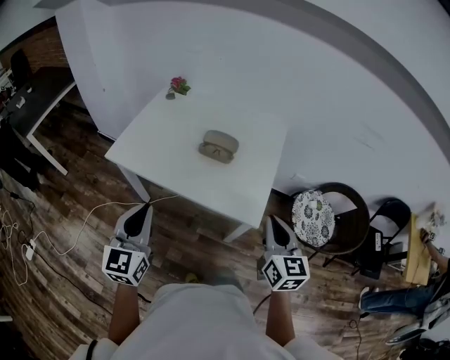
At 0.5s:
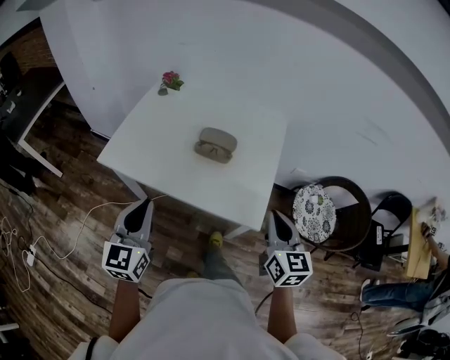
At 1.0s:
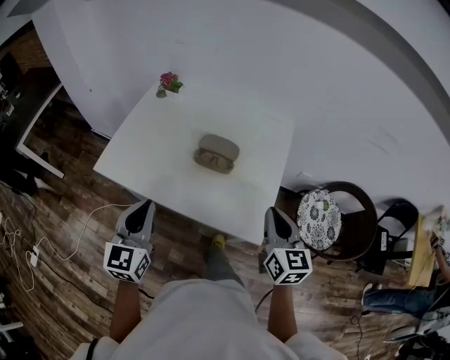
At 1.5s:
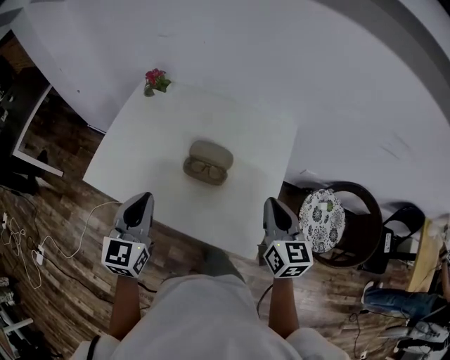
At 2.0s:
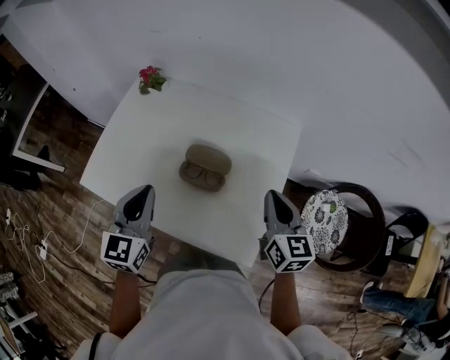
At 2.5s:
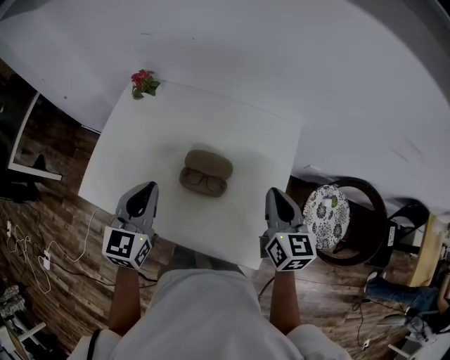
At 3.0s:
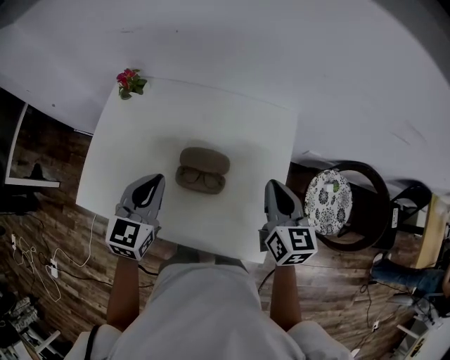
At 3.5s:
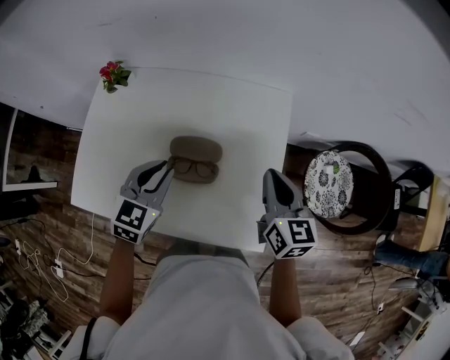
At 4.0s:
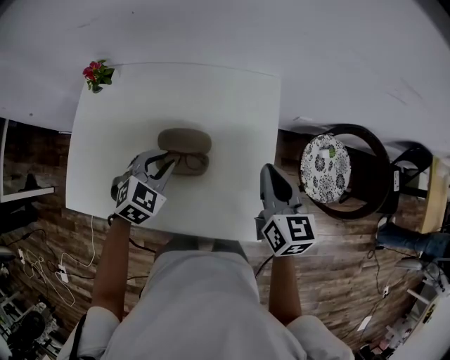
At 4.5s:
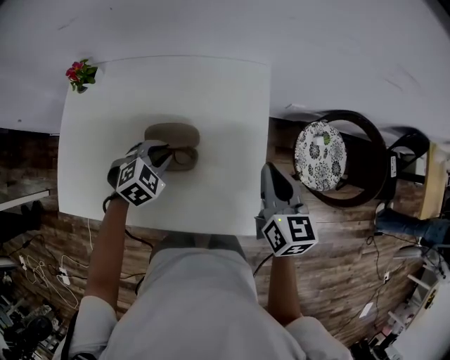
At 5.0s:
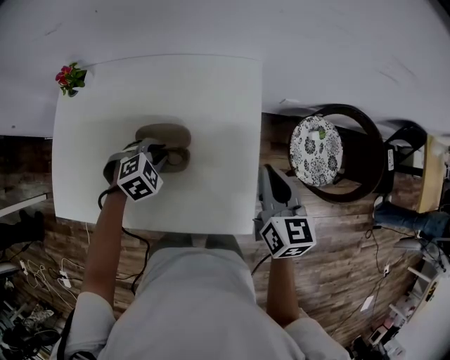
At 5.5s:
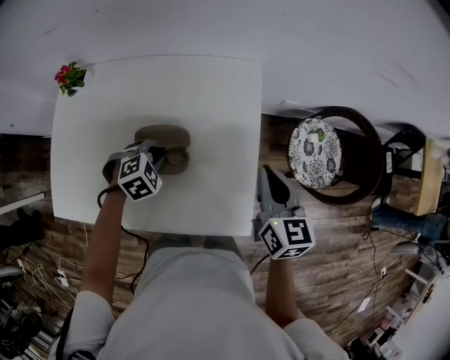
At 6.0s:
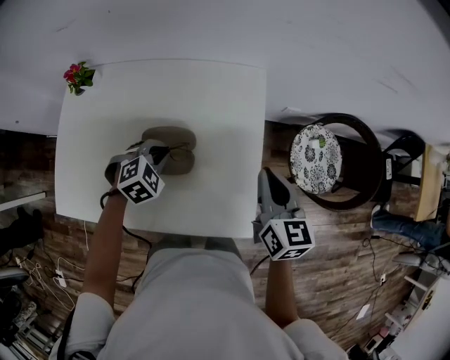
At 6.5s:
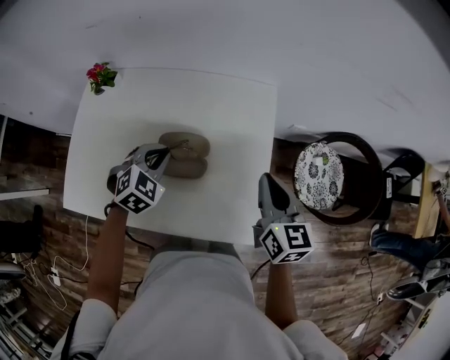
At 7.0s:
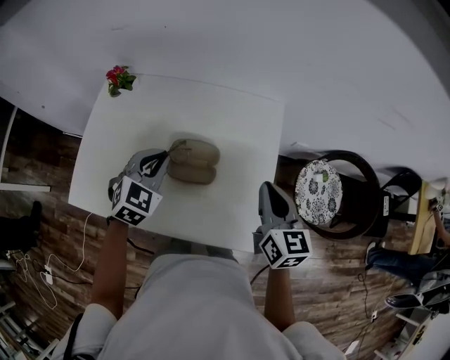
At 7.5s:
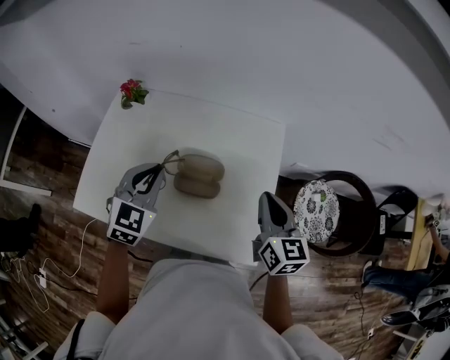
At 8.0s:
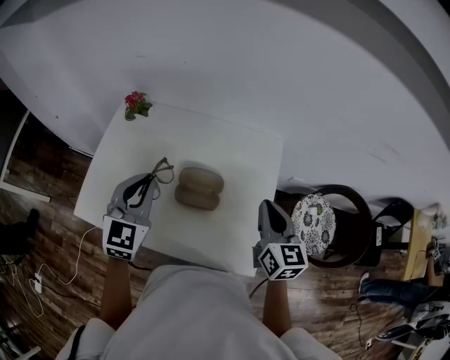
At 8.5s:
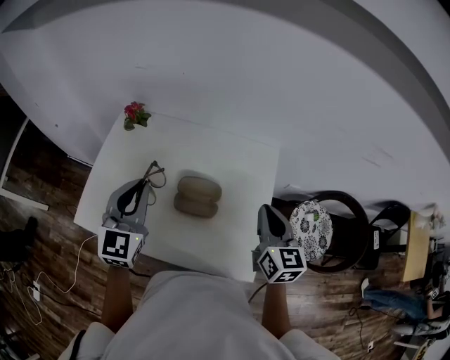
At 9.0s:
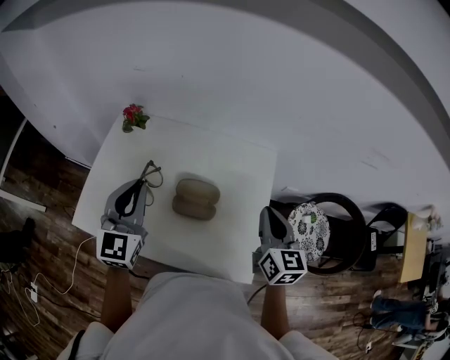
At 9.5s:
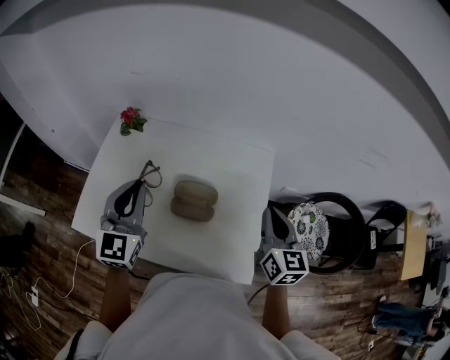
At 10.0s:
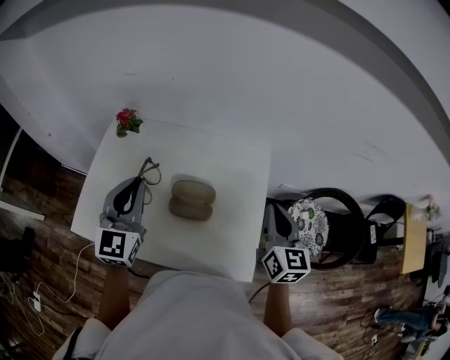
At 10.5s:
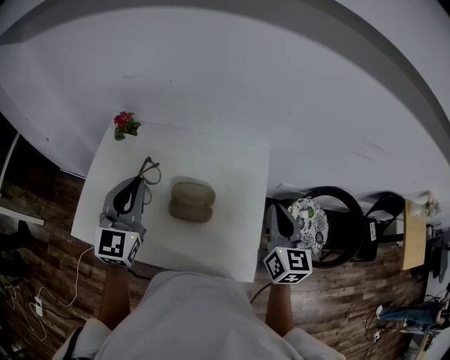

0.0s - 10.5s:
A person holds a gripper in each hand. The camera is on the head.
0.0s - 2.0s: The two grippers go about 30 cm forward.
2.0s - 4.0s: The left gripper moves downward, forward and to the right, about 20 cm, and tilts its fingers some 30 degrees downward.
4.0s - 6.5s: The left gripper goes downward and returns, some 10 cm each way.
6.5s - 8.5s: The right gripper moves upward, approximately 5 cm, while the left gripper heads upward and to the left, covering some 25 cm, and angles its fingers upward, by about 40 degrees.
8.5s - 10.5s: The grippers stay close to where they were, moving slightly.

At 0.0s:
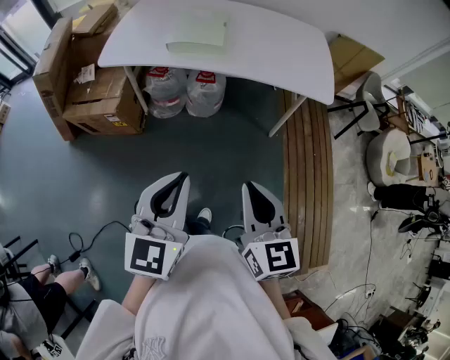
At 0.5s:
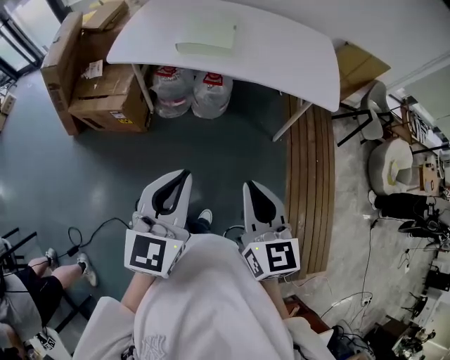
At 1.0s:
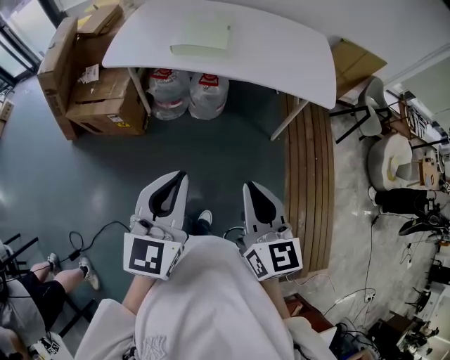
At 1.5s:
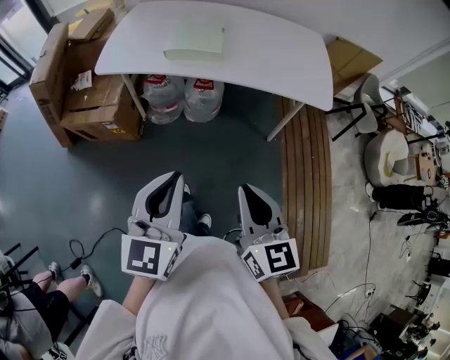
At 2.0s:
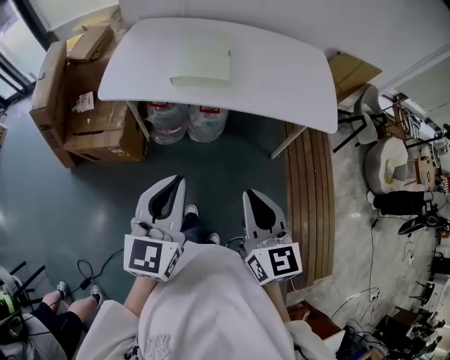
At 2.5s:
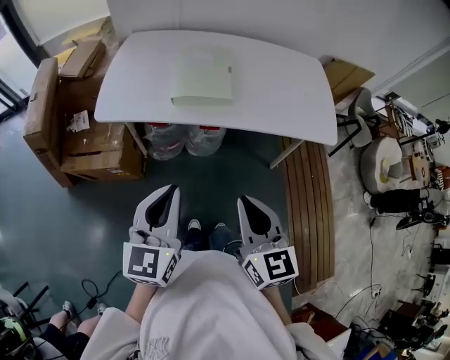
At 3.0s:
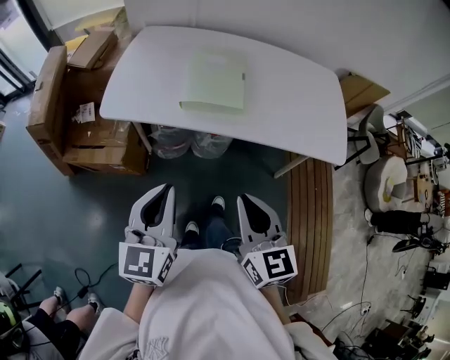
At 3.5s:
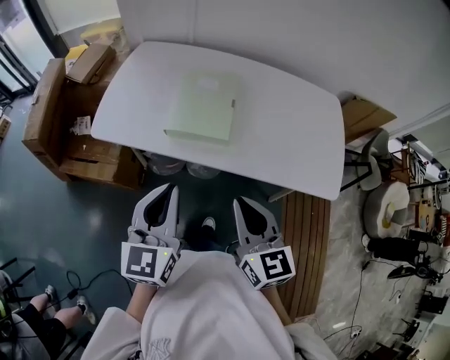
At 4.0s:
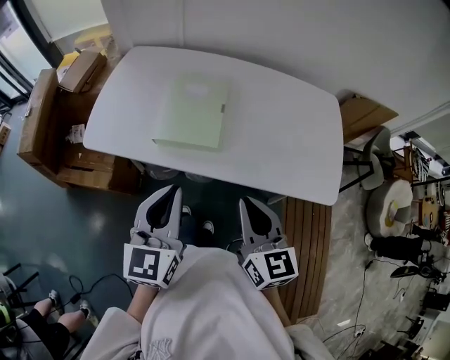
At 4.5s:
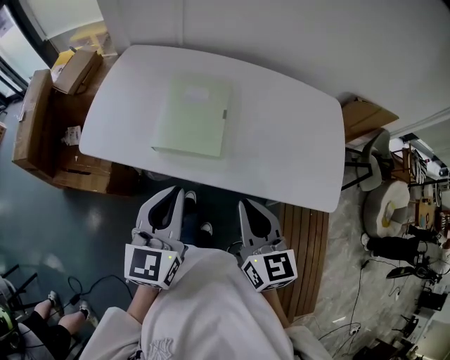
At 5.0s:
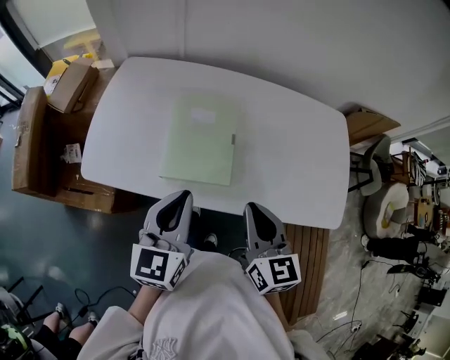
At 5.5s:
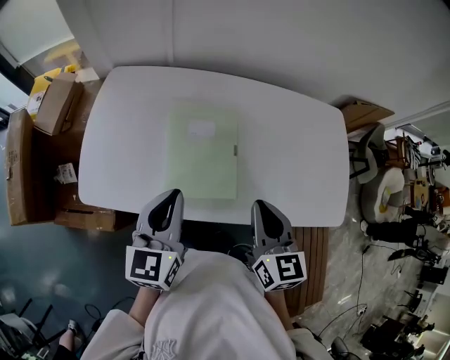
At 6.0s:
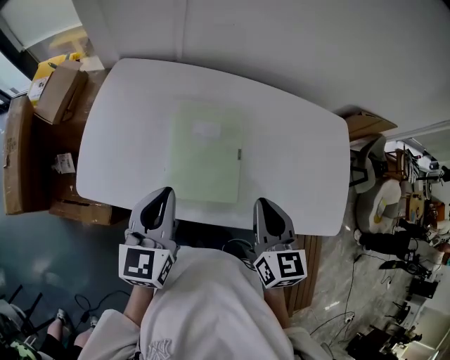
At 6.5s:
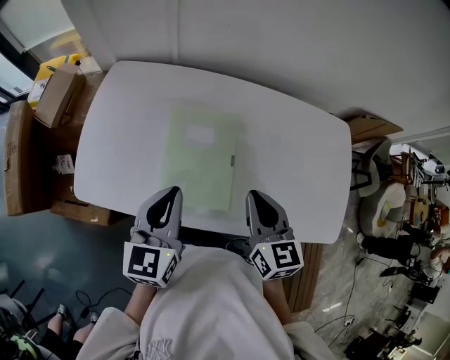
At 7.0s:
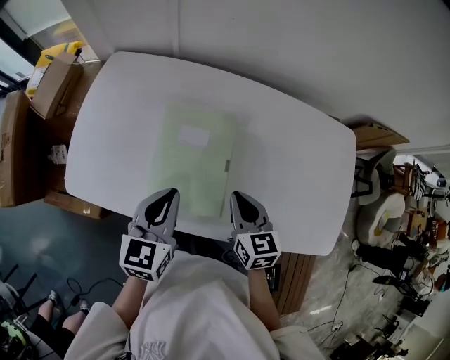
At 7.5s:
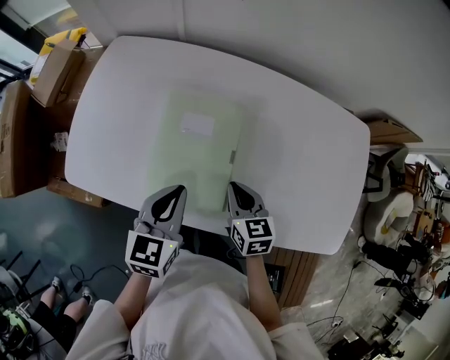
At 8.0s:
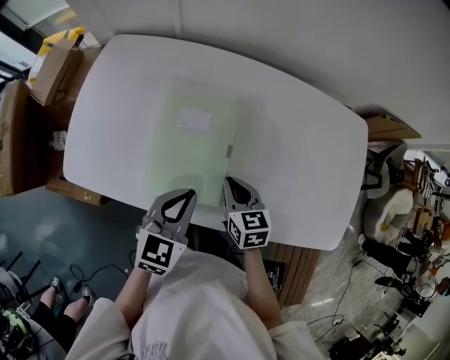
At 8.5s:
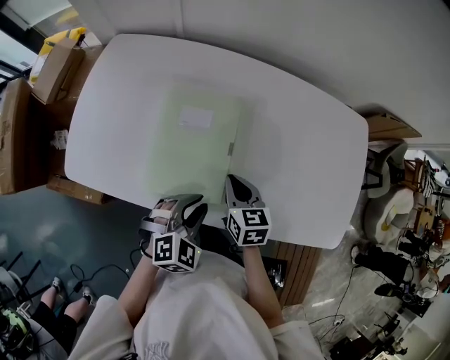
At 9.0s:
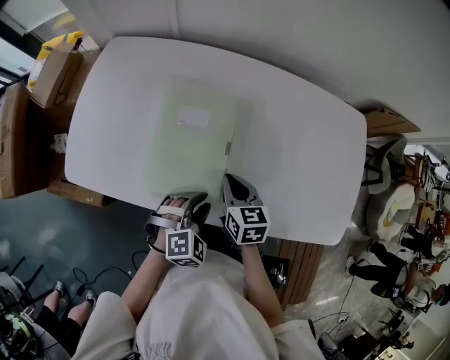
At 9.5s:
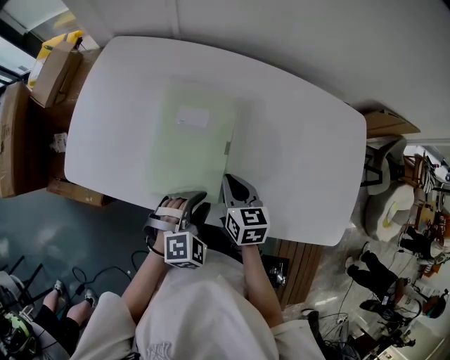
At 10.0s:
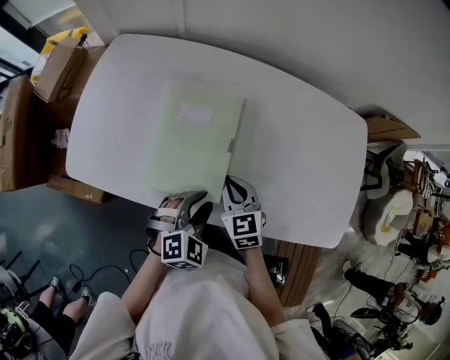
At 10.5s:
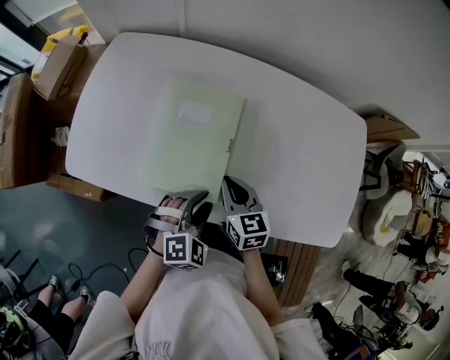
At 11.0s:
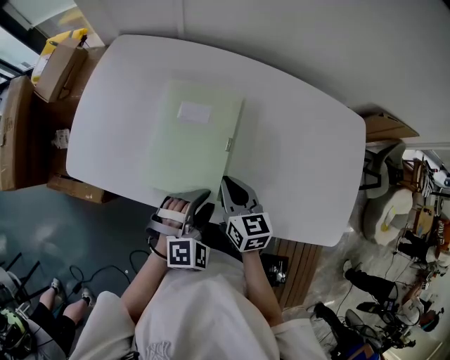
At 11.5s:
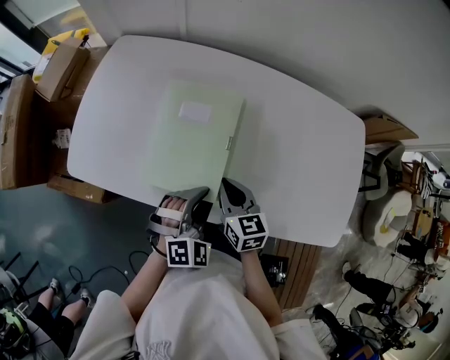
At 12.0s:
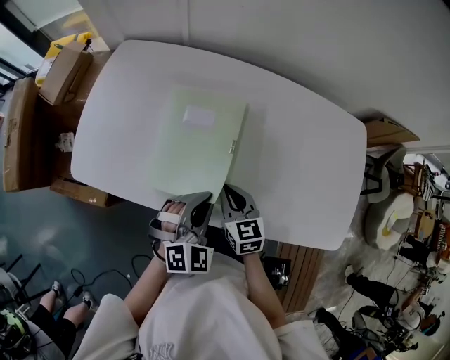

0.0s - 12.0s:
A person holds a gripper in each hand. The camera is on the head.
0.0s - 2.0s: Both grippers travel together forward and to the left, about 15 cm.
2.0s - 4.0s: The grippers both shift forward by some 25 cm.
4.0s - 6.0s: The right gripper goes roughly 20 cm forward. The left gripper shifts roughly 25 cm forward and to the left.
6.0s - 8.0s: The left gripper goes approximately 15 cm to the right and downward, and turns by some 20 degrees, while the right gripper heads downward, covering about 20 cm, and swivels roughly 20 degrees.
8.0s - 10.0s: The left gripper travels downward by about 5 cm, rotates approximately 30 degrees, and opens its fingers.
10.0s - 12.0s: The left gripper travels upward by about 5 cm, and closes.

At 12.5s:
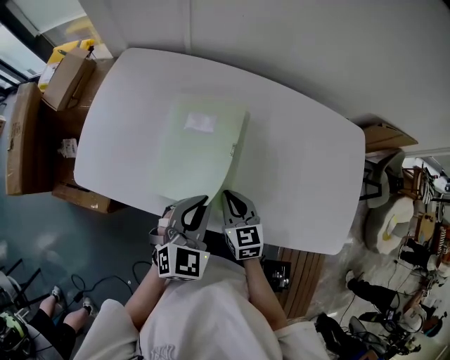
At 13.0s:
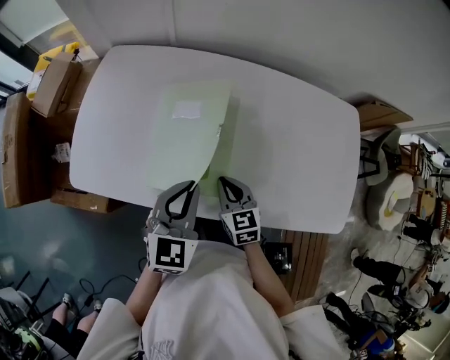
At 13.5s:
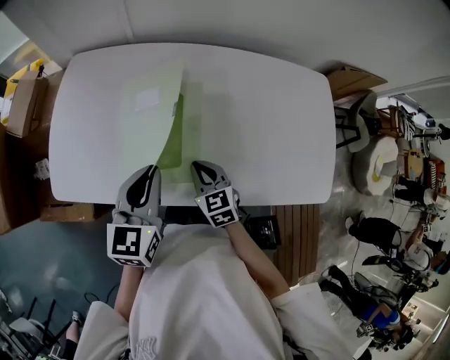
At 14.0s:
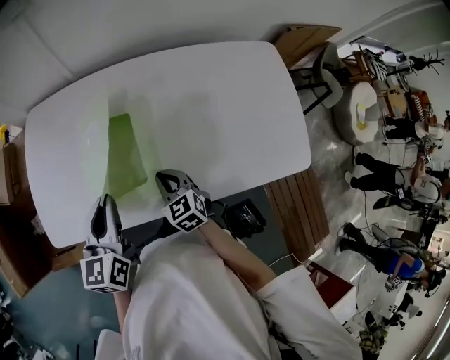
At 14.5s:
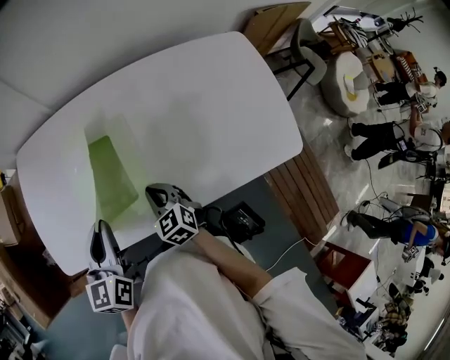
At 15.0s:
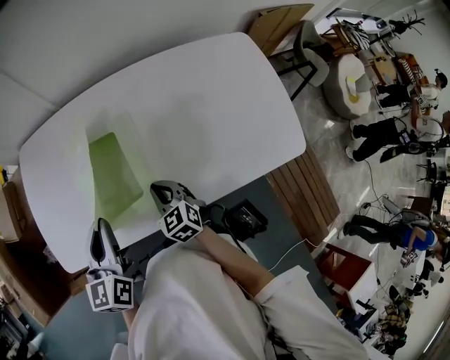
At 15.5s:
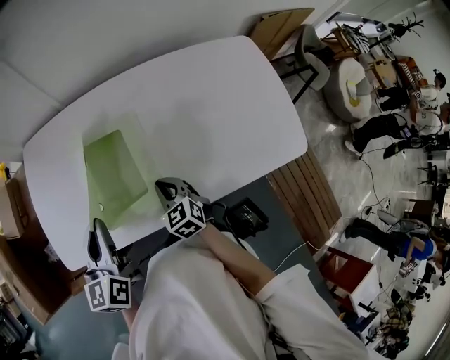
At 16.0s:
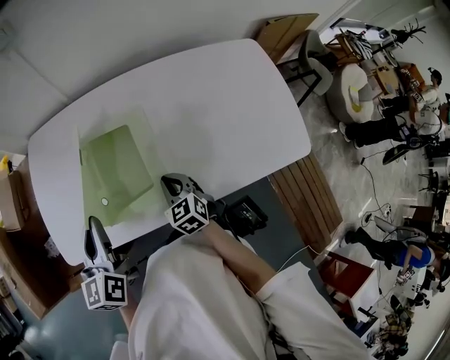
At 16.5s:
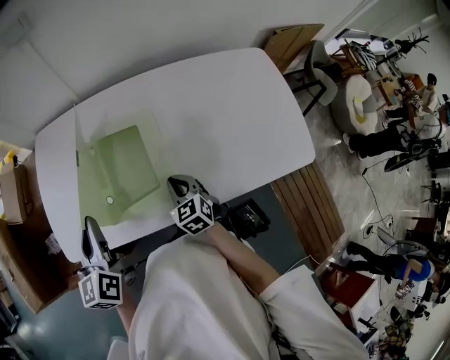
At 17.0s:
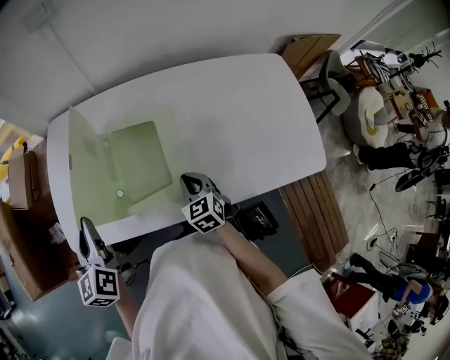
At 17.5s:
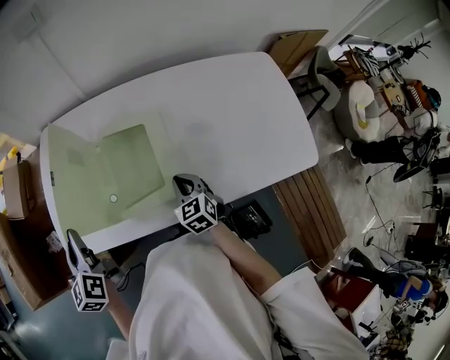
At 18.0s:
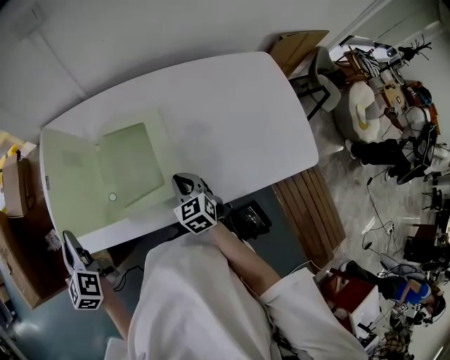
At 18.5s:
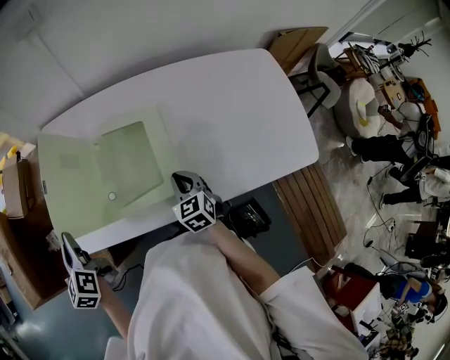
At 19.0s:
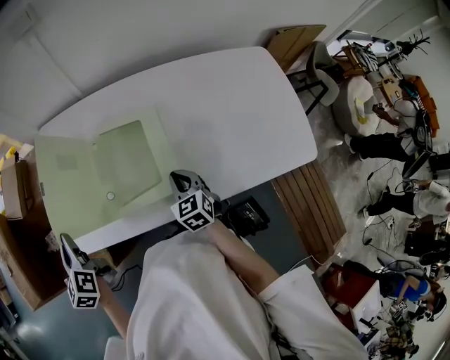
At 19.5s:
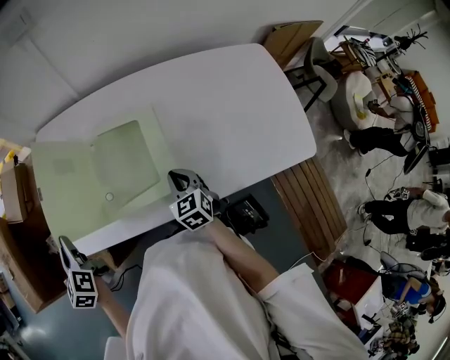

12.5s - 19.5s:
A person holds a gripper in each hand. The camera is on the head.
12.5s - 14.5s: The left gripper travels to the left and upward by some 10 cm, and swivels roughly 30 degrees.
14.5s - 16.0s: The left gripper heads to the left, covering approximately 5 cm.
16.0s - 17.5s: The left gripper heads to the left, covering about 15 cm.
17.5s - 19.5s: The left gripper heads to the left, covering roughly 5 cm.
